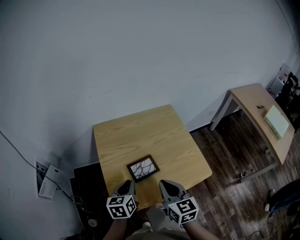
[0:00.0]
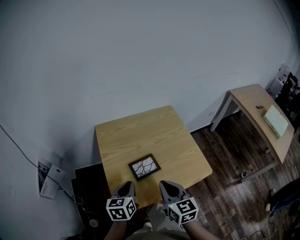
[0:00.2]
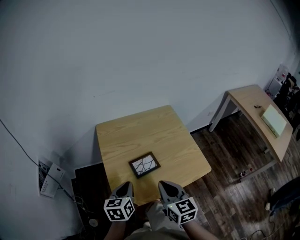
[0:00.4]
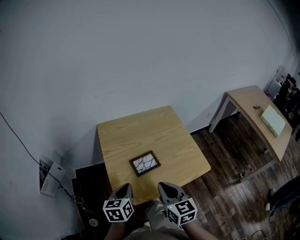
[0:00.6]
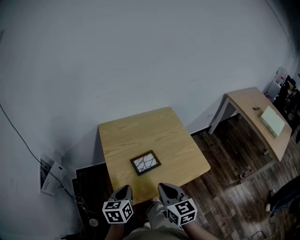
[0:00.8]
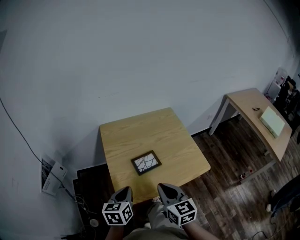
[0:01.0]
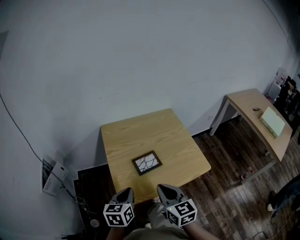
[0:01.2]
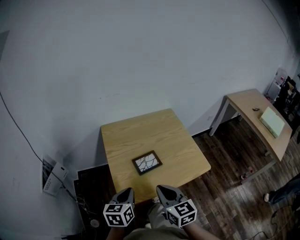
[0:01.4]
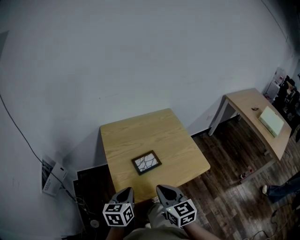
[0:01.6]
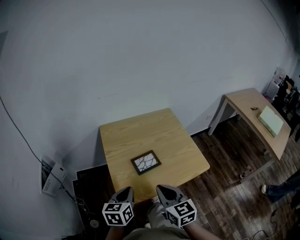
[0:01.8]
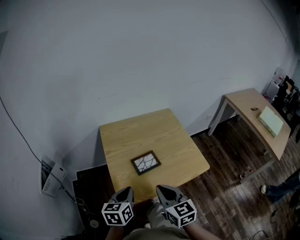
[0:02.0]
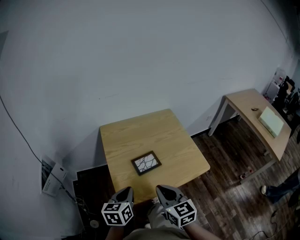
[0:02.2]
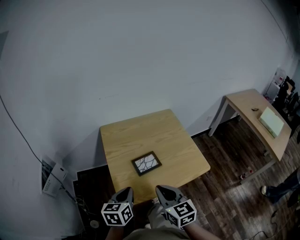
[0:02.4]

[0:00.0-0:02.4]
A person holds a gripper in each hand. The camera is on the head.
0:00.0 to 0:01.2: Both grippers move backward, about 10 cm.
0:01.2 to 0:02.4: Both grippers stay about where they are.

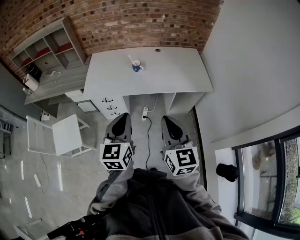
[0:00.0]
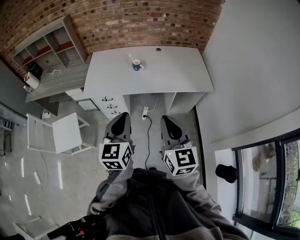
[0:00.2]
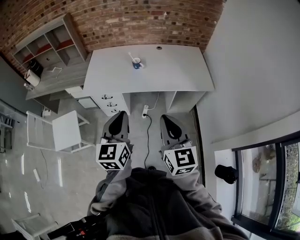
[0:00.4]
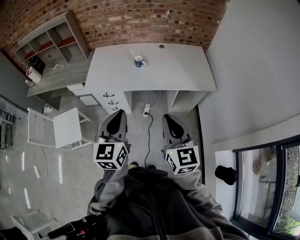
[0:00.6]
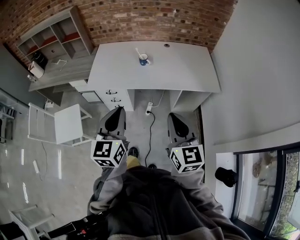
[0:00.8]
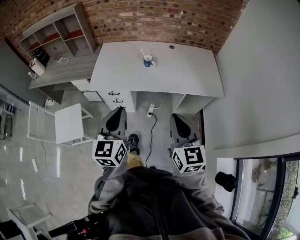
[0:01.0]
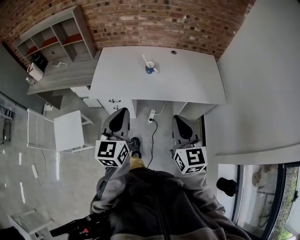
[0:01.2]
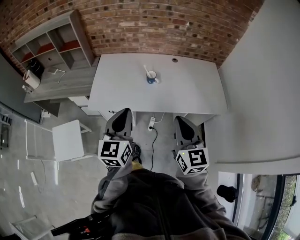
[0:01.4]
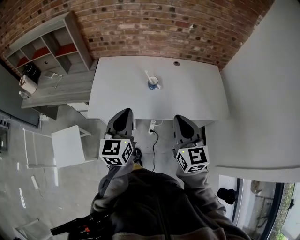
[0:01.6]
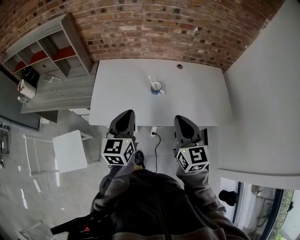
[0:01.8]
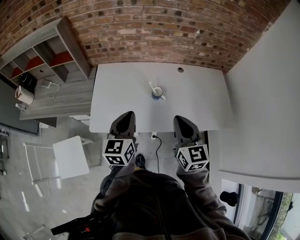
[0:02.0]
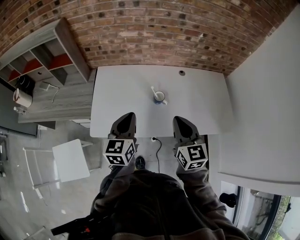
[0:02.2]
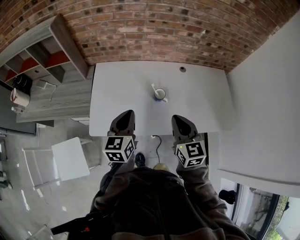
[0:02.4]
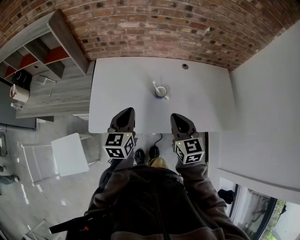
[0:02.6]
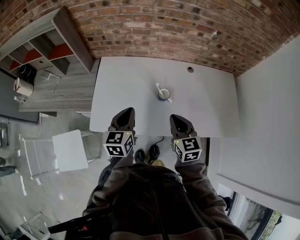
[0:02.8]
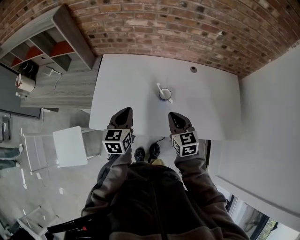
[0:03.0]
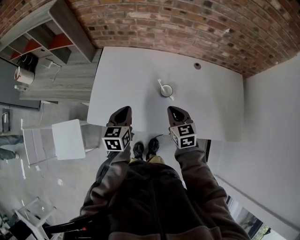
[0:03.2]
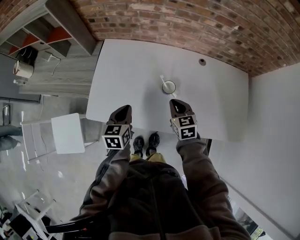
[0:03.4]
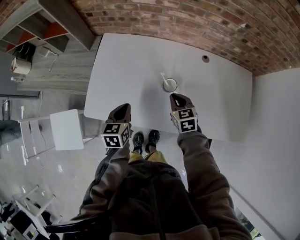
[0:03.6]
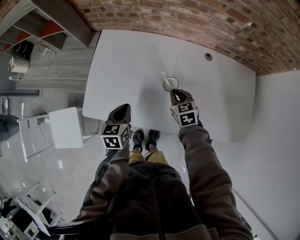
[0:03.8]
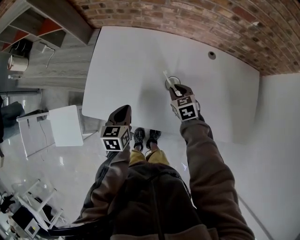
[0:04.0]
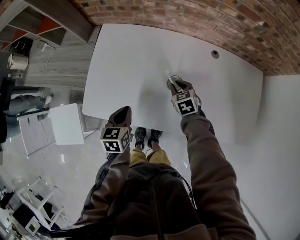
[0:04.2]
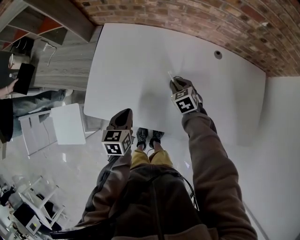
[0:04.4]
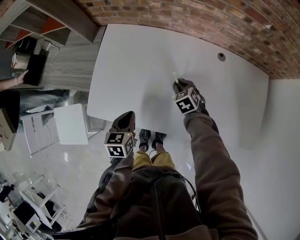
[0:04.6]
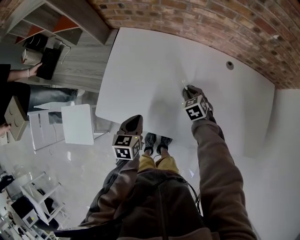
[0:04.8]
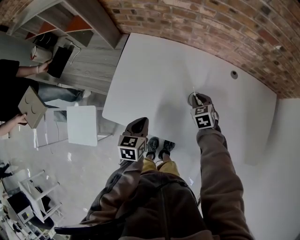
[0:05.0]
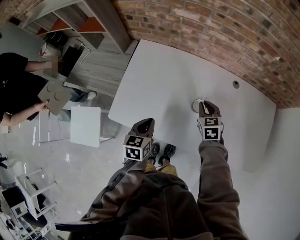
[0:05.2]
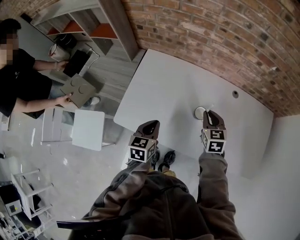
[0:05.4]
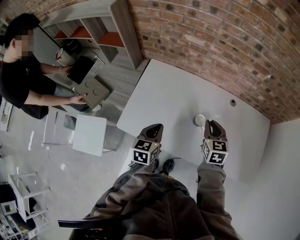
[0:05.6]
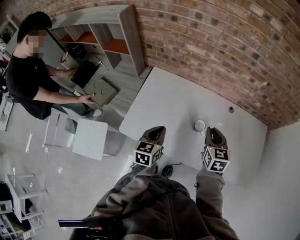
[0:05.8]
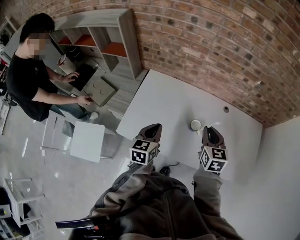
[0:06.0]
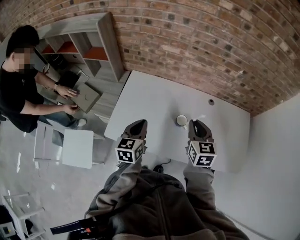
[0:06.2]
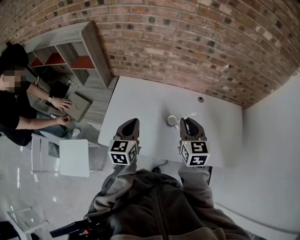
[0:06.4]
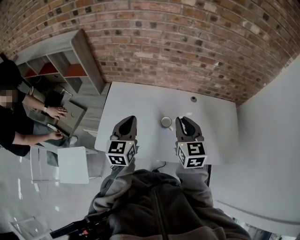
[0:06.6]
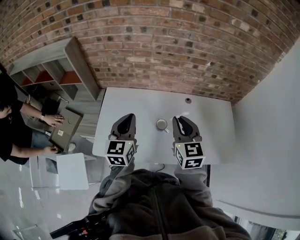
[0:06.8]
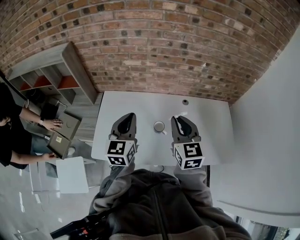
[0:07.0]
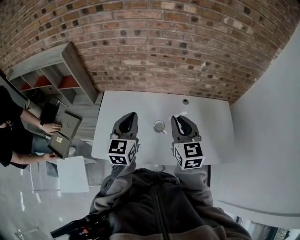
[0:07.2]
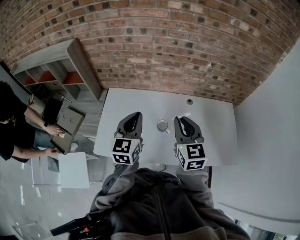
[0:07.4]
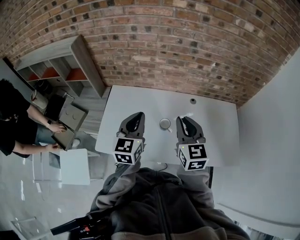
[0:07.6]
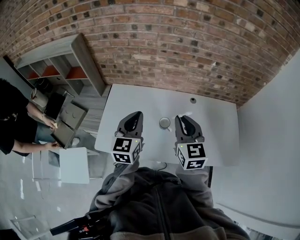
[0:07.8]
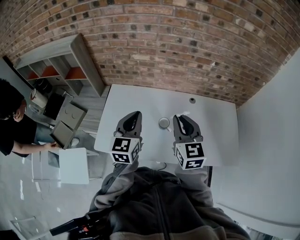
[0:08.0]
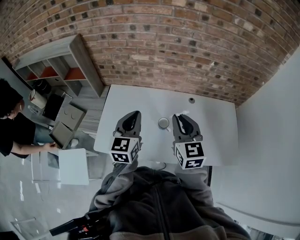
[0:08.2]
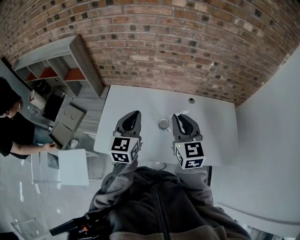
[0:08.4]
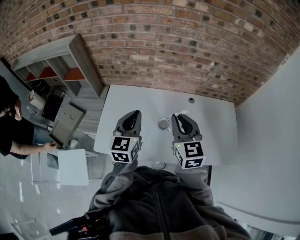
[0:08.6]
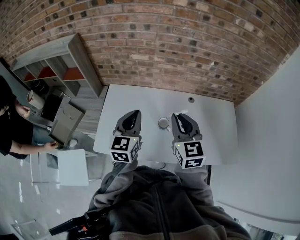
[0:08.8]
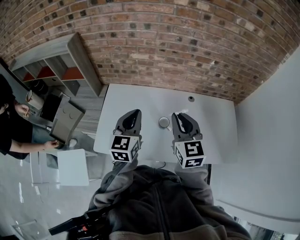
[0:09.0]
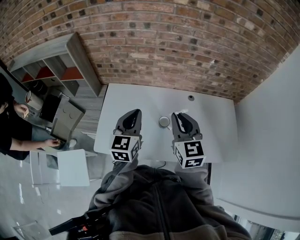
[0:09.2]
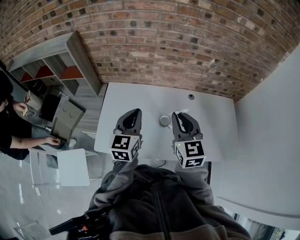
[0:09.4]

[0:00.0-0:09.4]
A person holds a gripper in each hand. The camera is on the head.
0:00.0 to 0:01.6: The grippers both shift forward by roughly 25 cm.
0:01.6 to 0:03.2: Both grippers move forward and downward, roughly 30 cm. The right gripper swivels roughly 30 degrees; the left gripper turns by approximately 30 degrees.
0:03.2 to 0:04.8: The right gripper shifts approximately 20 cm downward and forward, and changes its angle by approximately 30 degrees, while the left gripper heads downward, covering some 10 cm.
0:04.8 to 0:06.2: The right gripper moves upward, about 30 cm, and points its fingers approximately 30 degrees further upward. The left gripper is displaced upward by some 20 cm, and turns by some 20 degrees.
0:06.2 to 0:07.8: The left gripper travels upward and to the right by some 15 cm; the right gripper travels upward by roughly 10 cm.
0:07.8 to 0:09.4: The grippers make only small movements.

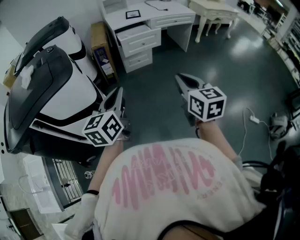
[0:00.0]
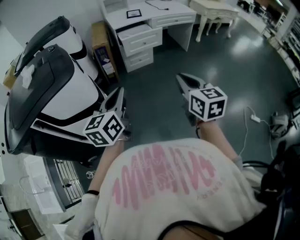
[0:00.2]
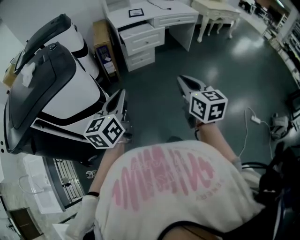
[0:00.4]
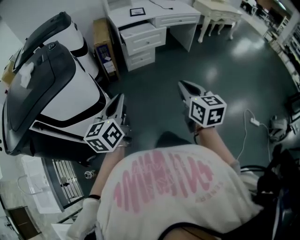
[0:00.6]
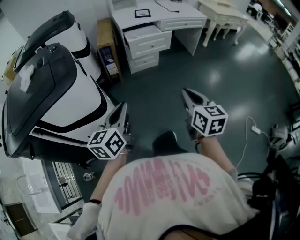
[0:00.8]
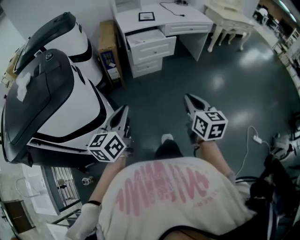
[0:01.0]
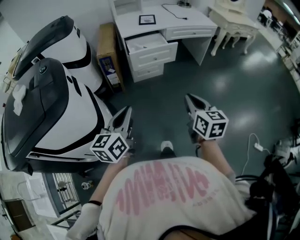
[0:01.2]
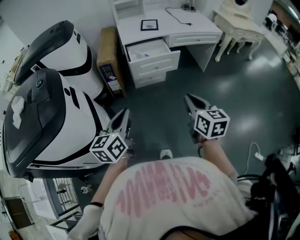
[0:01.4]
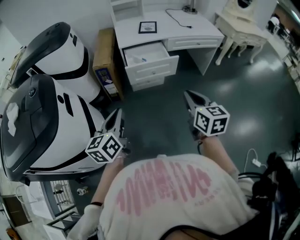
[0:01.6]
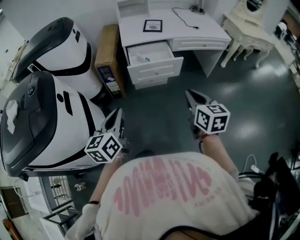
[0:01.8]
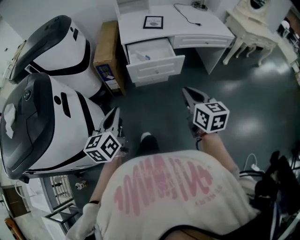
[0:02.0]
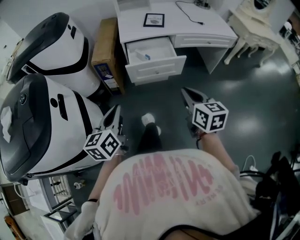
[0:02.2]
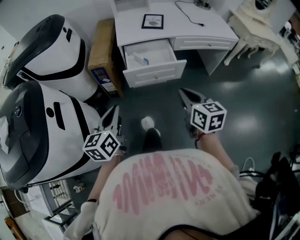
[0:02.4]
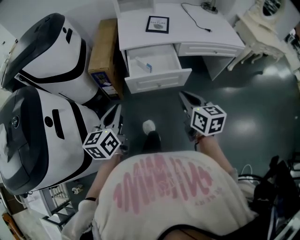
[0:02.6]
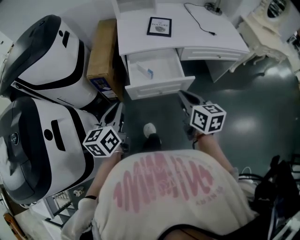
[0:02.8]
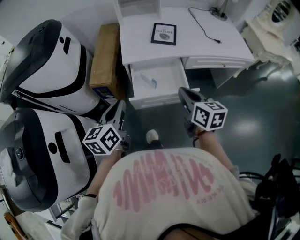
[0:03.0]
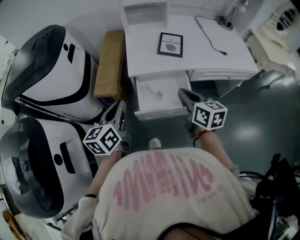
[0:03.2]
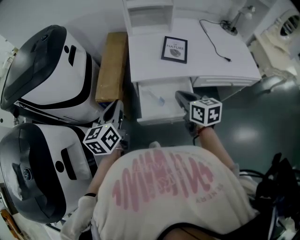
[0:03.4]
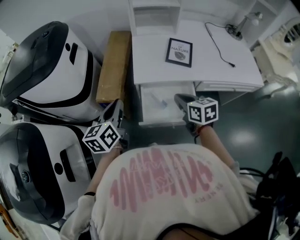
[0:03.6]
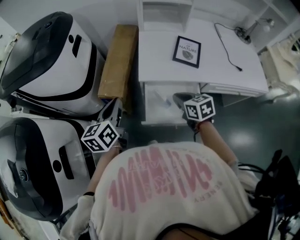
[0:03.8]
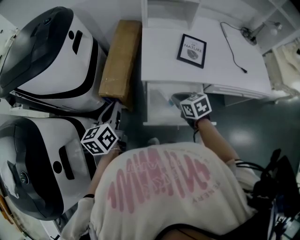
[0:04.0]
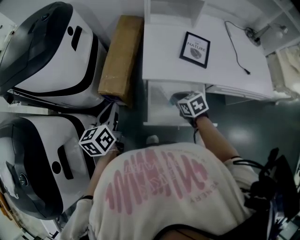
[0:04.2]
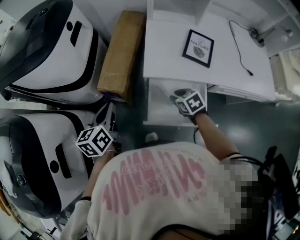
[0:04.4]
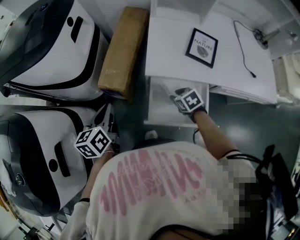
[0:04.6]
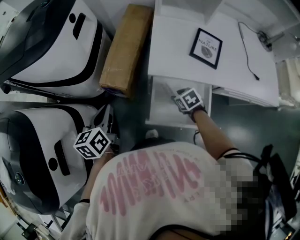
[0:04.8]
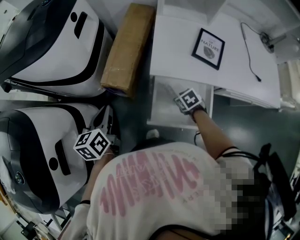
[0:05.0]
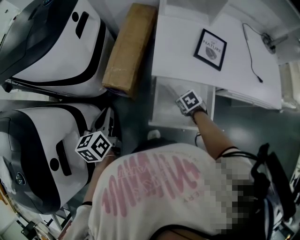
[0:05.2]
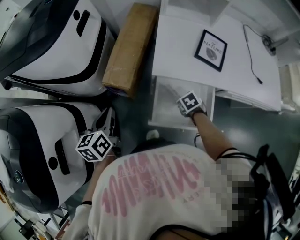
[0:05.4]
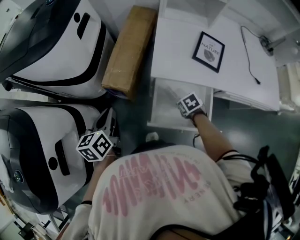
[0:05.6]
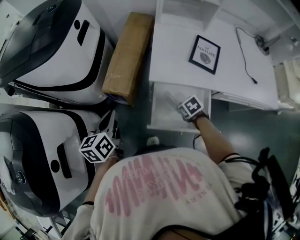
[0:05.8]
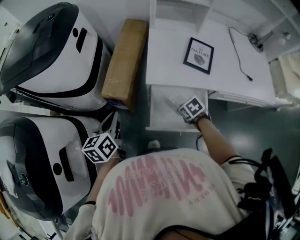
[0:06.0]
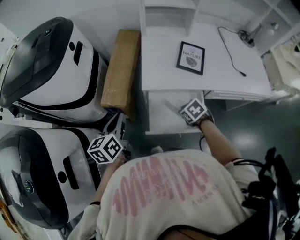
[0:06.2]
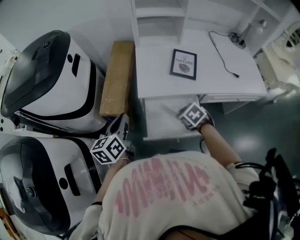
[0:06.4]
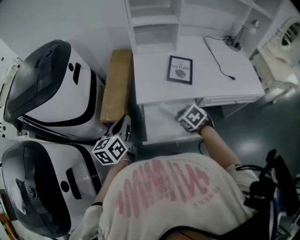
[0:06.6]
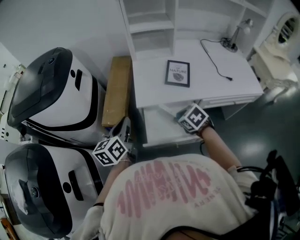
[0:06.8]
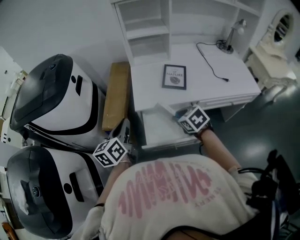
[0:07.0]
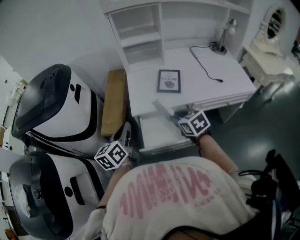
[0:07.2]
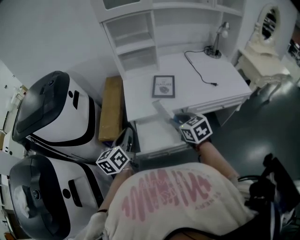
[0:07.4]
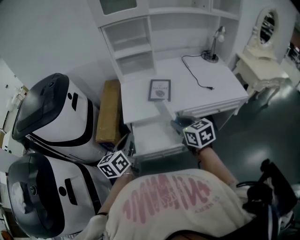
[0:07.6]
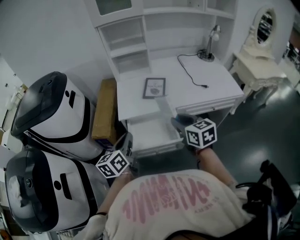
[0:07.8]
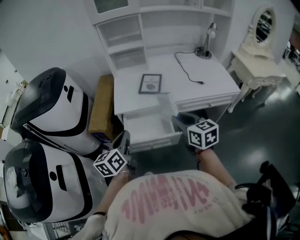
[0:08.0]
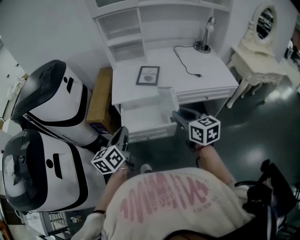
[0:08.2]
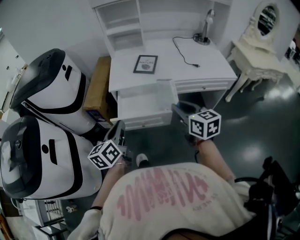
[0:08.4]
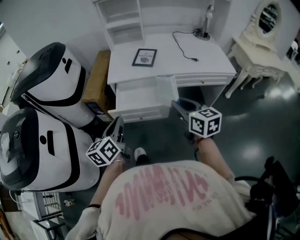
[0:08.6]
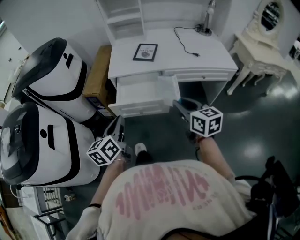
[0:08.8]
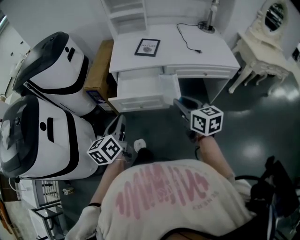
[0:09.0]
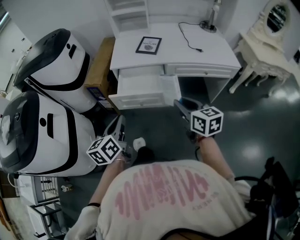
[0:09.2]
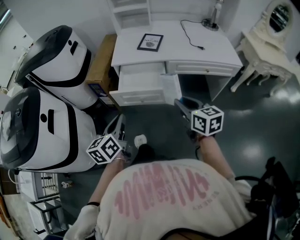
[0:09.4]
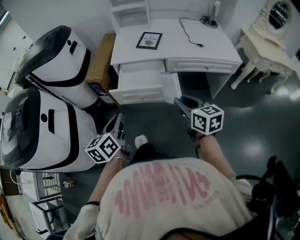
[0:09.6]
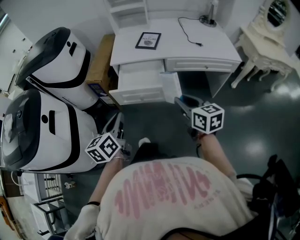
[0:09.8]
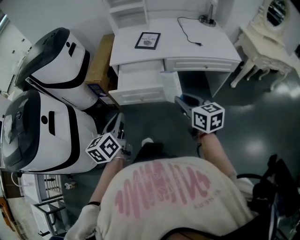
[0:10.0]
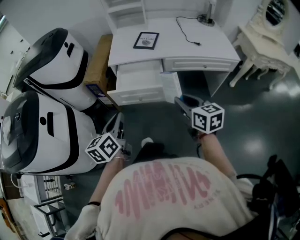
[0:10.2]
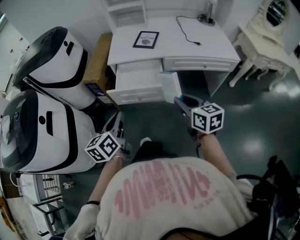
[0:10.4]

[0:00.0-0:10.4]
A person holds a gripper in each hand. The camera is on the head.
0:00.0 to 0:01.4: Both grippers move forward, about 25 cm.
0:01.4 to 0:03.0: Both grippers move forward, roughly 40 cm.
0:03.0 to 0:04.4: The right gripper goes roughly 30 cm downward and forward, tips its fingers downward by some 40 degrees, and opens. The left gripper shifts roughly 20 cm forward, to the left and downward.
0:06.0 to 0:07.4: The right gripper goes some 25 cm upward, and angles its fingers upward, by some 40 degrees. Meanwhile the left gripper is displaced to the right and upward by roughly 20 cm.
0:07.4 to 0:09.0: The left gripper heads backward, covering approximately 25 cm. Meanwhile the right gripper moves backward and to the right, some 25 cm.
0:09.0 to 0:10.4: The grippers make only small movements.

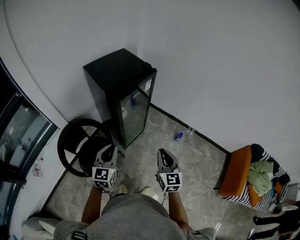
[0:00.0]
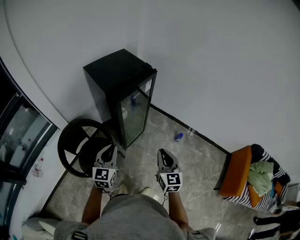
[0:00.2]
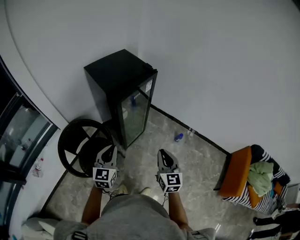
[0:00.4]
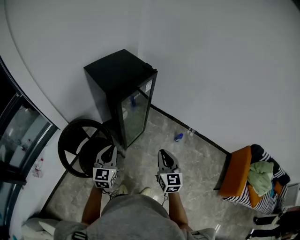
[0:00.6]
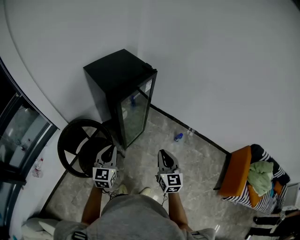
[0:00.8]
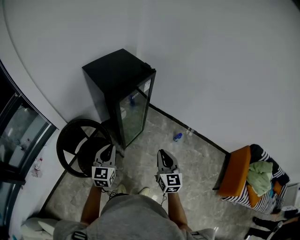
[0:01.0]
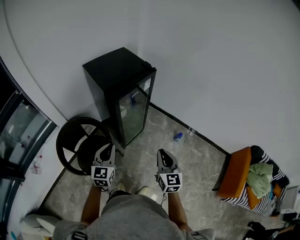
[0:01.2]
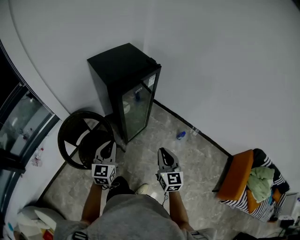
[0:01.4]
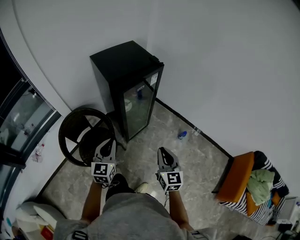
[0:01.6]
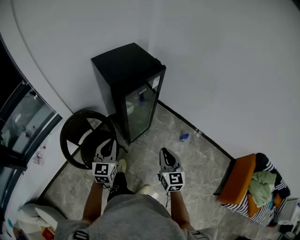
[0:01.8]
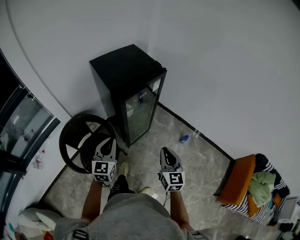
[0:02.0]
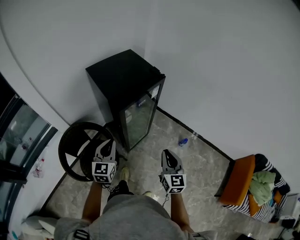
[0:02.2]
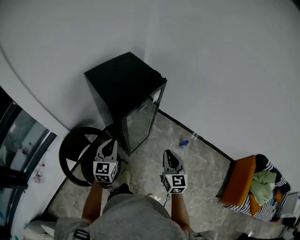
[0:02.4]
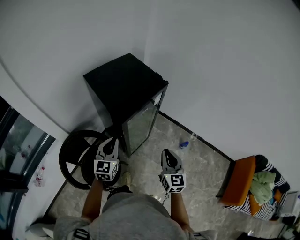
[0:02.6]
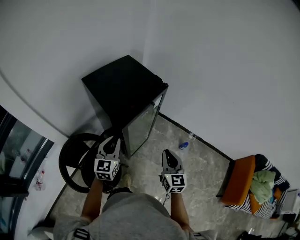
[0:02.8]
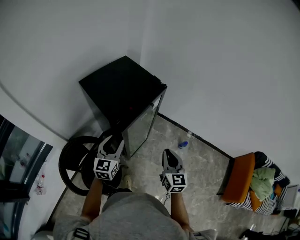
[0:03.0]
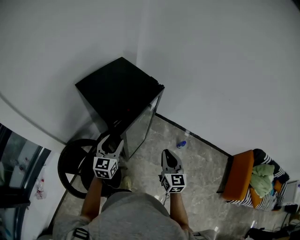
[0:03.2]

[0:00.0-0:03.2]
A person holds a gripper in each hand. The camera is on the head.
0:00.0 to 0:01.6: The grippers move only a little.
0:01.6 to 0:03.2: The two grippers go some 20 cm forward. The left gripper opens.
